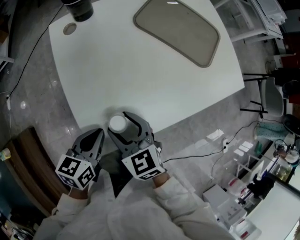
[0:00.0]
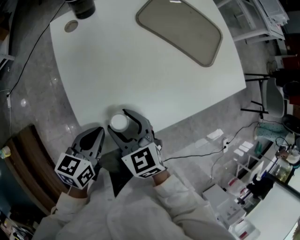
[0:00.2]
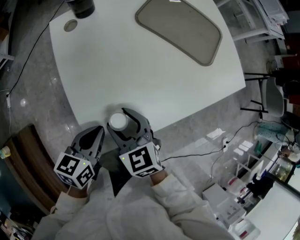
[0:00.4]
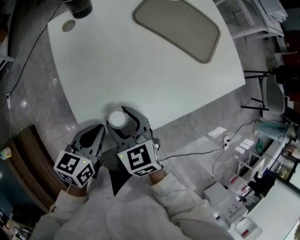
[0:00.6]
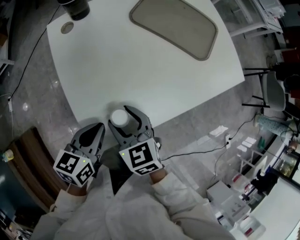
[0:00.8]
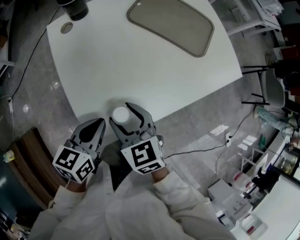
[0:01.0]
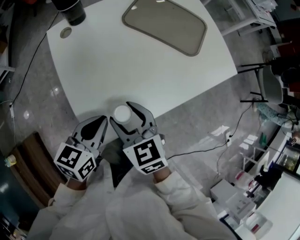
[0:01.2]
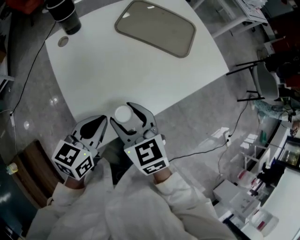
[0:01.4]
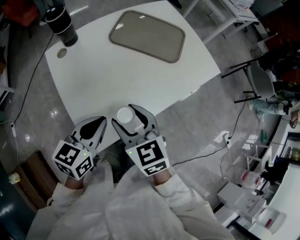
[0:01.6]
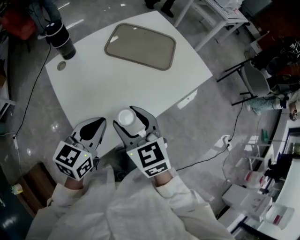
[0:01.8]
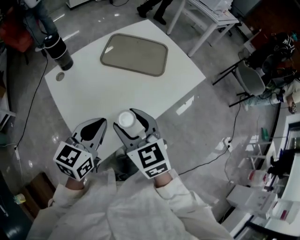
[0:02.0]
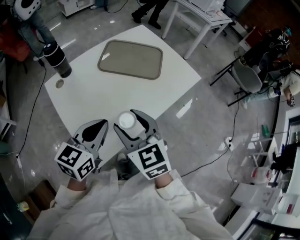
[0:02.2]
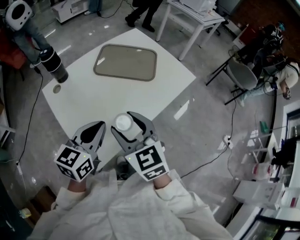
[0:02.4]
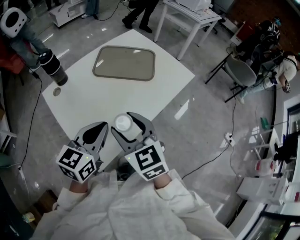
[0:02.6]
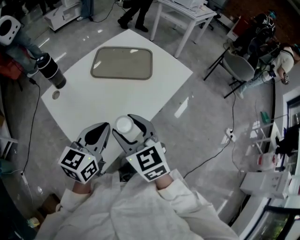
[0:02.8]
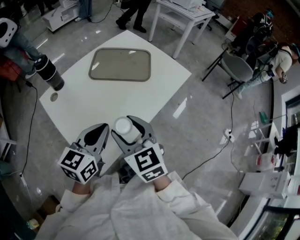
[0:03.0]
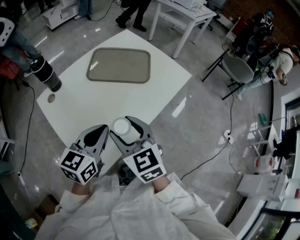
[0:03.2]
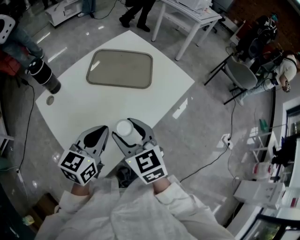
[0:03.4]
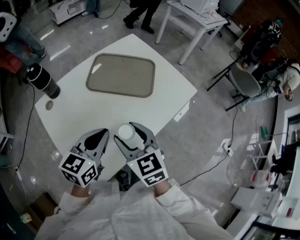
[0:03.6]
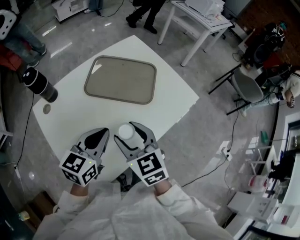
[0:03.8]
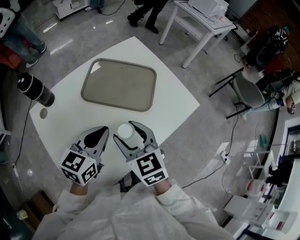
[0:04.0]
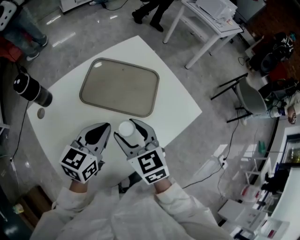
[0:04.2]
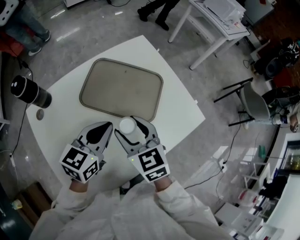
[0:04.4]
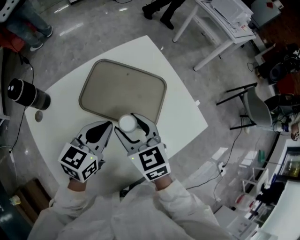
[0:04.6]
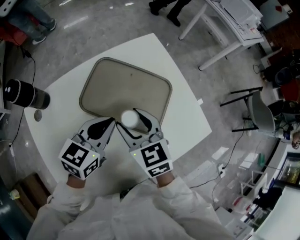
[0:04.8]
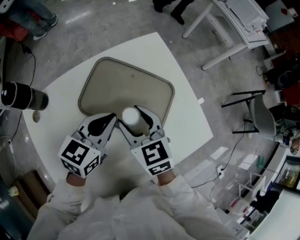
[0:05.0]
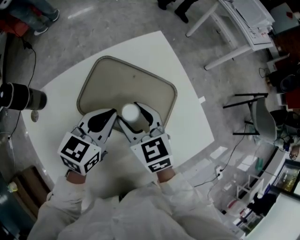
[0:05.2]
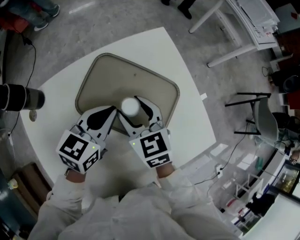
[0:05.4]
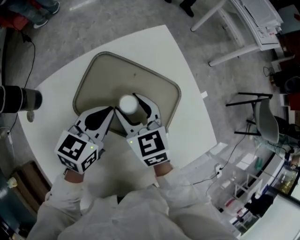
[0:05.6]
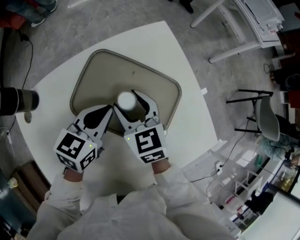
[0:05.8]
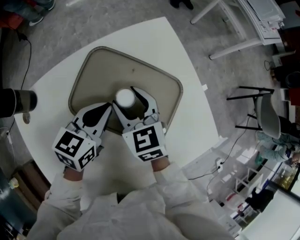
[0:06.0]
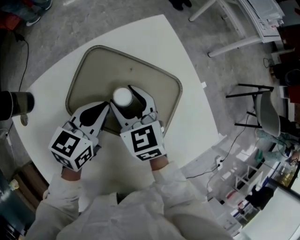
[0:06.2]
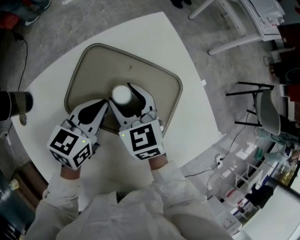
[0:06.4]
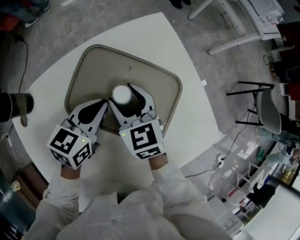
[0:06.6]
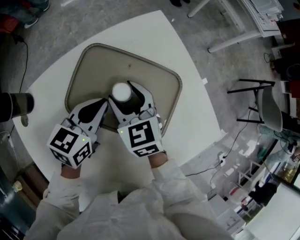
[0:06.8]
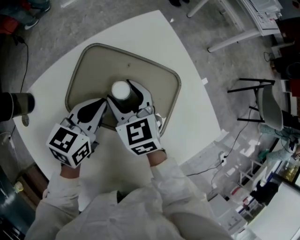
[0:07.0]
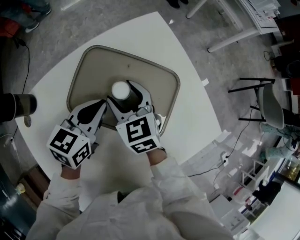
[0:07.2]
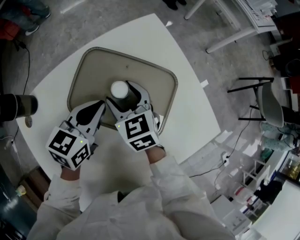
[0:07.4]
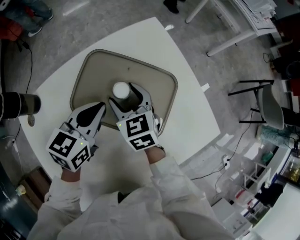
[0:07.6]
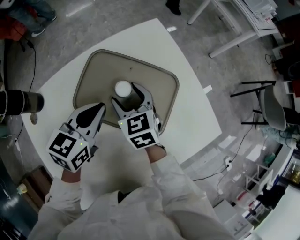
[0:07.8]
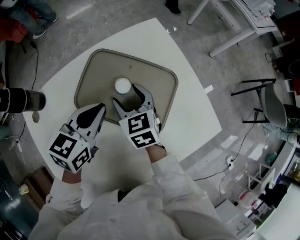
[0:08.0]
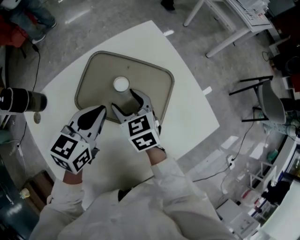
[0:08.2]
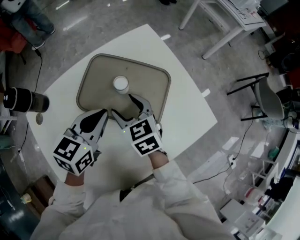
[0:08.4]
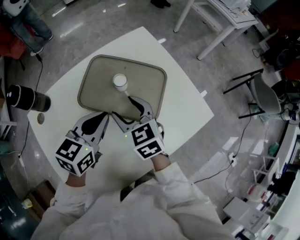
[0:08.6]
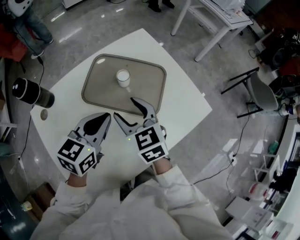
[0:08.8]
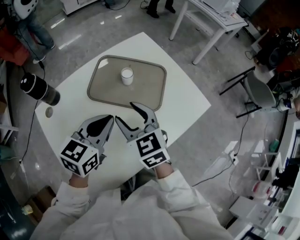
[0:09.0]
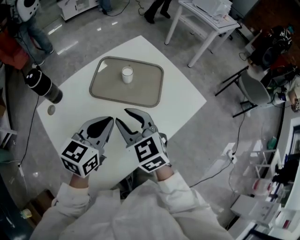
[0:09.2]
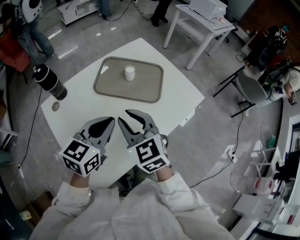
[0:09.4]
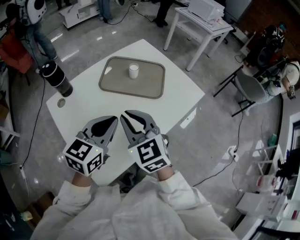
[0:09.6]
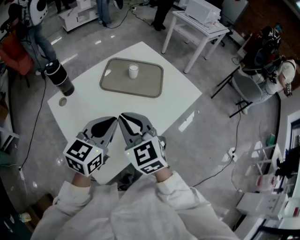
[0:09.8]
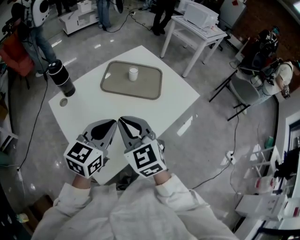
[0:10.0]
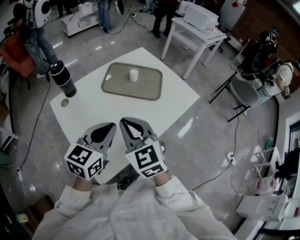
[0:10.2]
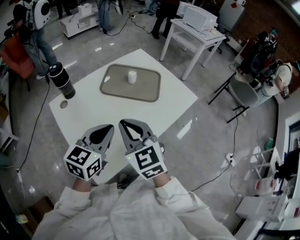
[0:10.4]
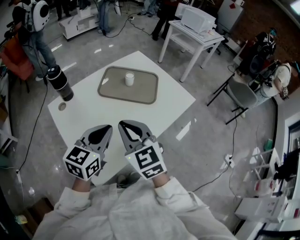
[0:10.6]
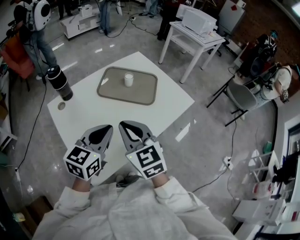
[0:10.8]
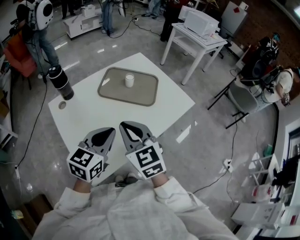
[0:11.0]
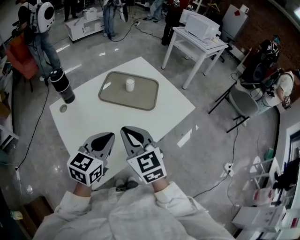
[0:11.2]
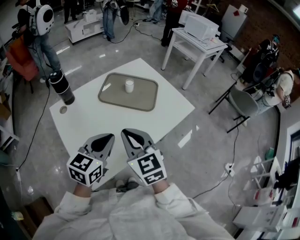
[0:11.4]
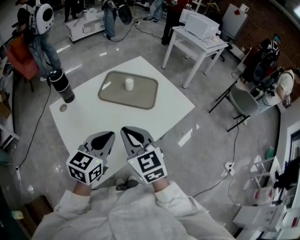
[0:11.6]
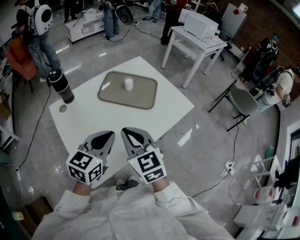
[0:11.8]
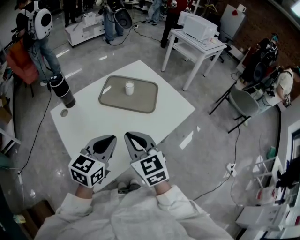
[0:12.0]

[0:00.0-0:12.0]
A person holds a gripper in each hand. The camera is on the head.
0:00.0 to 0:01.6: The grippers both shift upward and to the right by approximately 10 cm. The left gripper rotates some 20 degrees.
0:01.6 to 0:03.0: Both grippers travel together upward, roughly 5 cm.
0:03.0 to 0:04.4: Both grippers travel together forward, roughly 25 cm.
0:04.4 to 0:06.0: Both grippers move forward and downward, roughly 20 cm.
0:06.0 to 0:07.6: The grippers move only a little.
0:07.6 to 0:09.0: The grippers both shift backward and upward by about 20 cm.
0:09.0 to 0:10.4: The left gripper is displaced backward by approximately 20 cm. The right gripper goes roughly 25 cm backward and upward, and closes its fingers.
0:10.4 to 0:12.0: There are only small adjustments of the grippers.

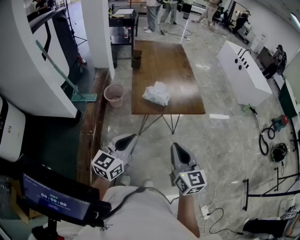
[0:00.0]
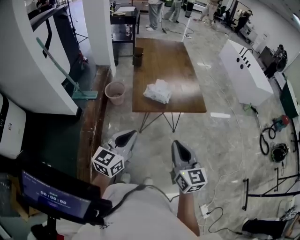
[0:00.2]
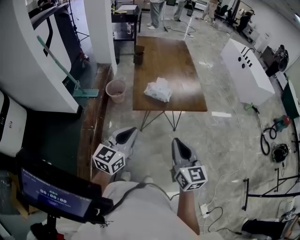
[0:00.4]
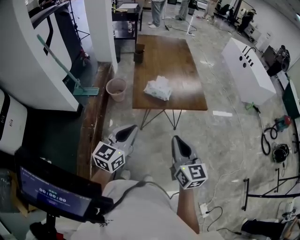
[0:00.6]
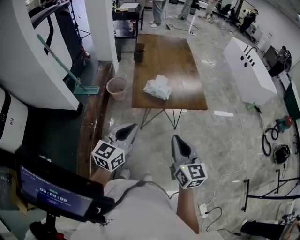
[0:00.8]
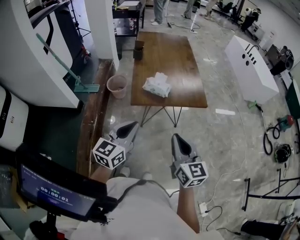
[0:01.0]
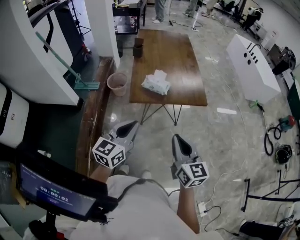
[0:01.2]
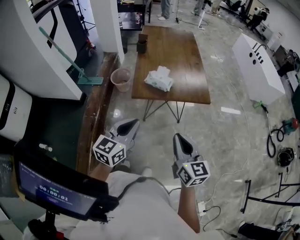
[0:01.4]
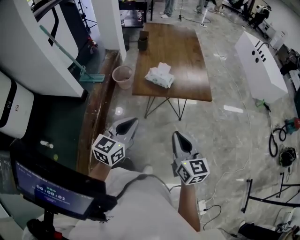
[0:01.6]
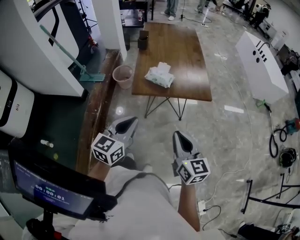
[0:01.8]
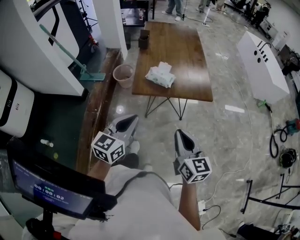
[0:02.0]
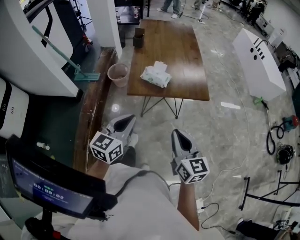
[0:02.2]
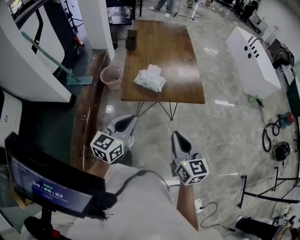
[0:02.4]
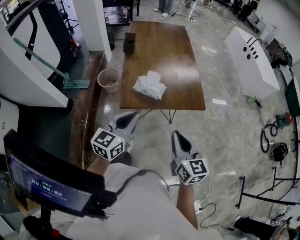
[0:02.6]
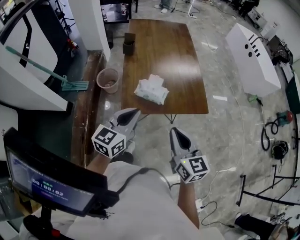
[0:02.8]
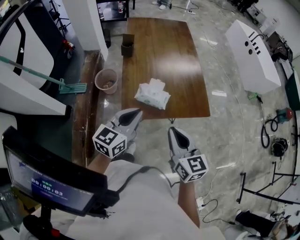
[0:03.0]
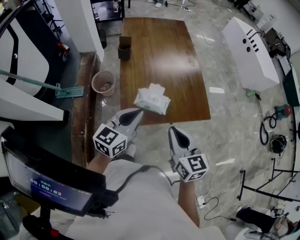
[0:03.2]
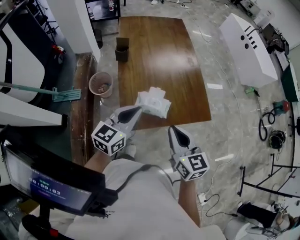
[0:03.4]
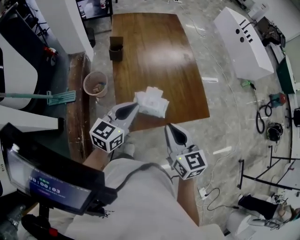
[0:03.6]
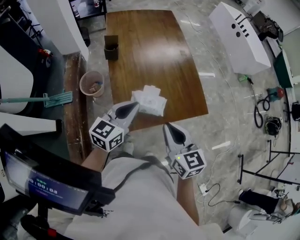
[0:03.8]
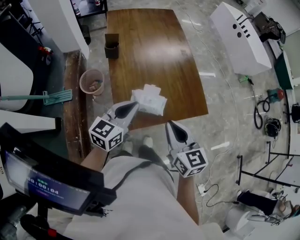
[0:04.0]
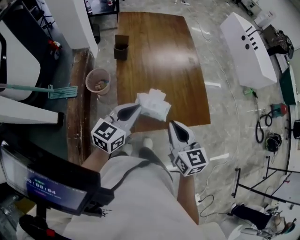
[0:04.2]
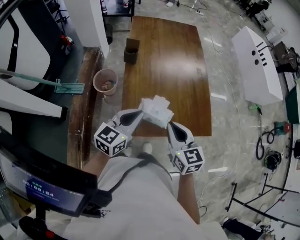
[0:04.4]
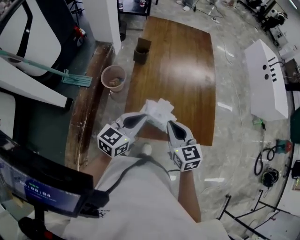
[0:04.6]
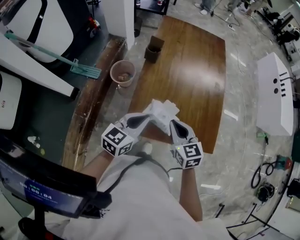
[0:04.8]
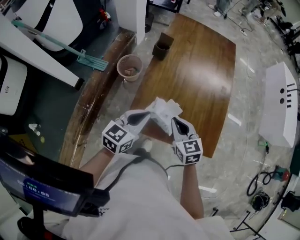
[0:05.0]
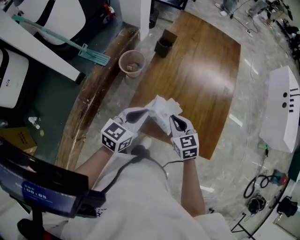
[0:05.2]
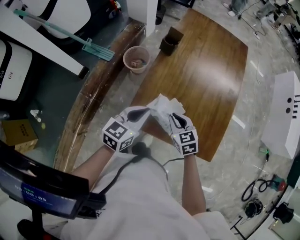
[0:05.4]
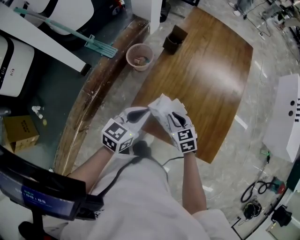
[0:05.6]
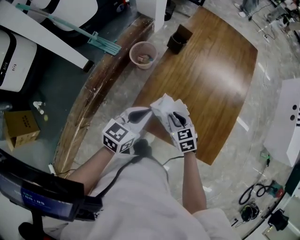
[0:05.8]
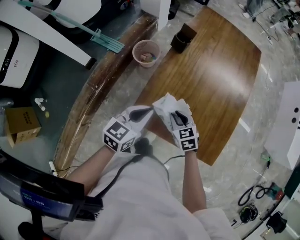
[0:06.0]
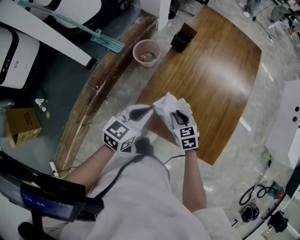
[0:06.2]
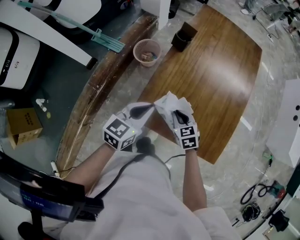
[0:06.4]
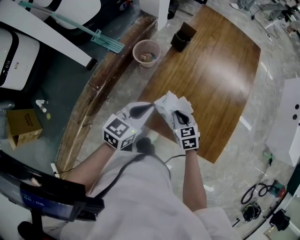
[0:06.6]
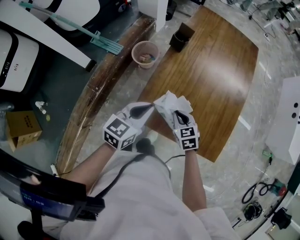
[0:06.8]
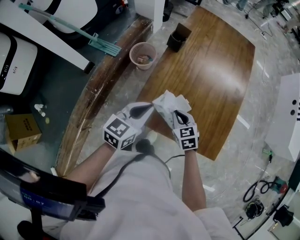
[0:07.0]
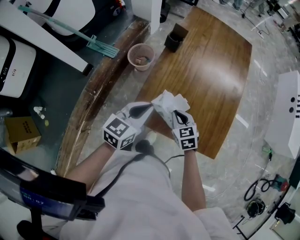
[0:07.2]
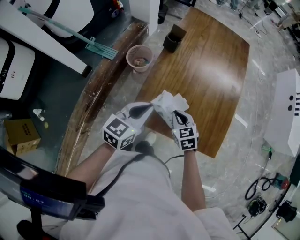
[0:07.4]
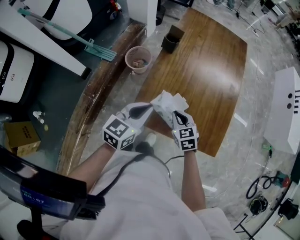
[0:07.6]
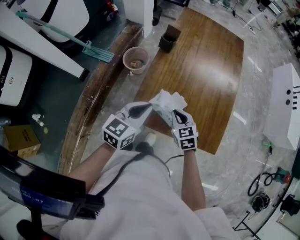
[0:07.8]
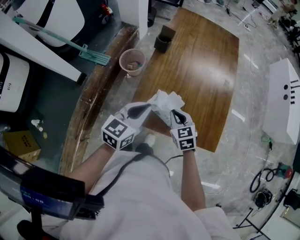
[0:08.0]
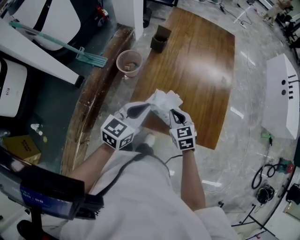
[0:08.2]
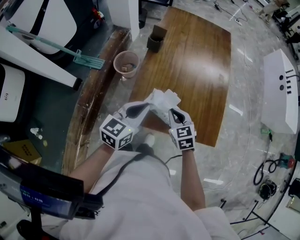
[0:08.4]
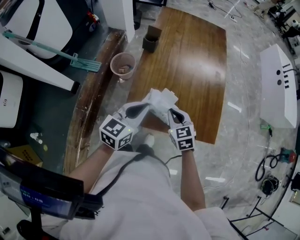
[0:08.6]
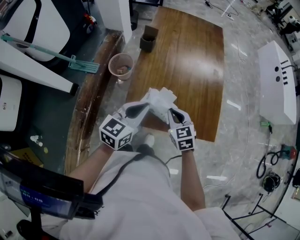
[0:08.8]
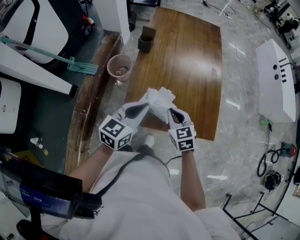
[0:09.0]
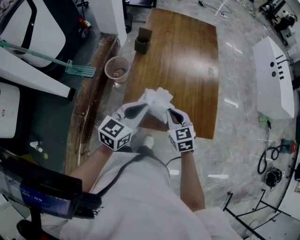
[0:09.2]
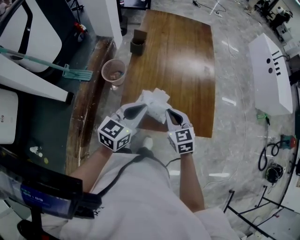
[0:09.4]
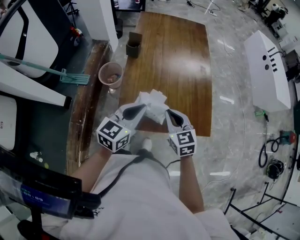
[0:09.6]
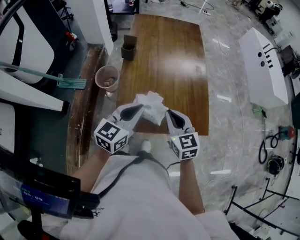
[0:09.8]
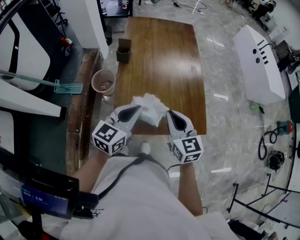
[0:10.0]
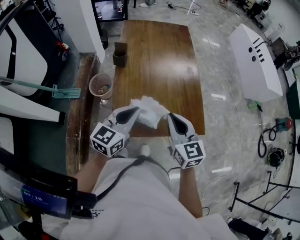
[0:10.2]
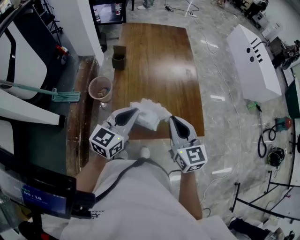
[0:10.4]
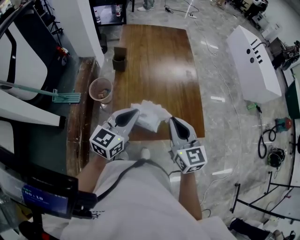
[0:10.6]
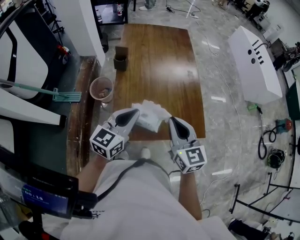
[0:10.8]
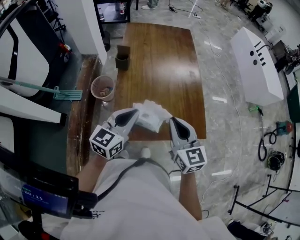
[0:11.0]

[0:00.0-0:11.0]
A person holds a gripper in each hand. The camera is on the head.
0:00.0 to 0:01.6: Both grippers move to the right, roughly 5 cm.
0:01.6 to 0:03.2: Both grippers move forward, roughly 25 cm.
0:03.2 to 0:04.8: The right gripper goes approximately 20 cm forward and downward, and swivels about 30 degrees, while the left gripper heads forward and downward, covering roughly 10 cm.
0:04.8 to 0:06.2: The right gripper travels downward by some 15 cm, and swivels roughly 30 degrees.
0:06.2 to 0:07.8: The right gripper changes place by some 5 cm.
0:07.8 to 0:09.4: The left gripper moves about 5 cm, while the right gripper moves upward, approximately 5 cm.
0:09.4 to 0:11.0: The right gripper heads upward, covering about 10 cm, and turns by some 20 degrees.

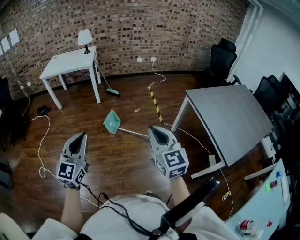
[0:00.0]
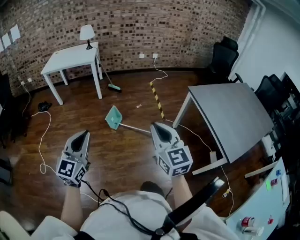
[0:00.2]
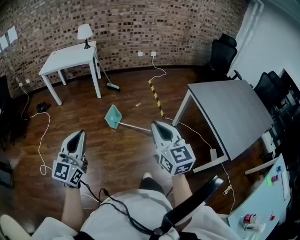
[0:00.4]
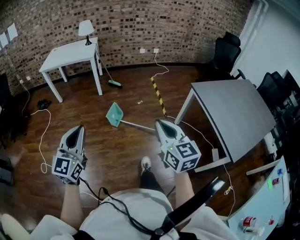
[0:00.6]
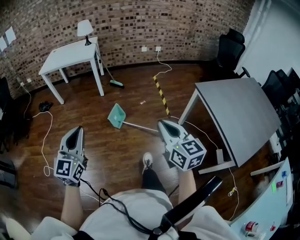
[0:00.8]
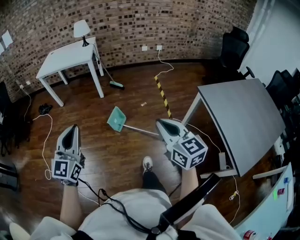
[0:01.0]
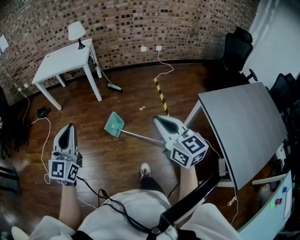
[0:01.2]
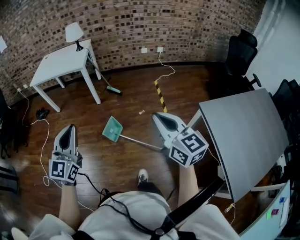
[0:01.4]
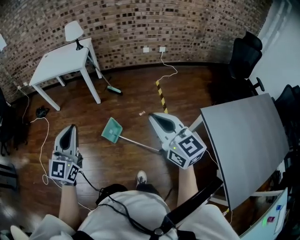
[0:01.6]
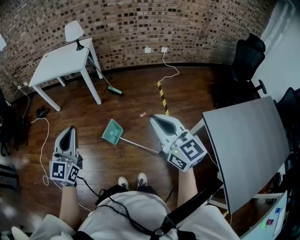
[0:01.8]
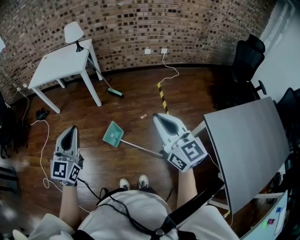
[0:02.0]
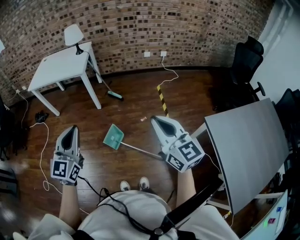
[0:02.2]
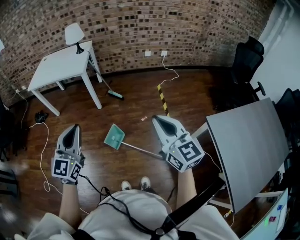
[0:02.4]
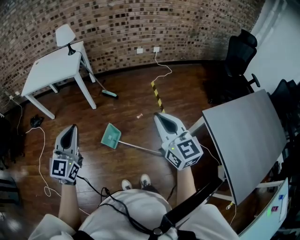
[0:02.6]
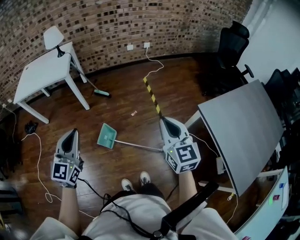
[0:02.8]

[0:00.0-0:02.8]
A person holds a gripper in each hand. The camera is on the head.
0:00.0 to 0:01.4: The two grippers go approximately 30 cm forward.
0:01.4 to 0:02.8: The two grippers go about 10 cm forward. The right gripper rotates some 20 degrees.
